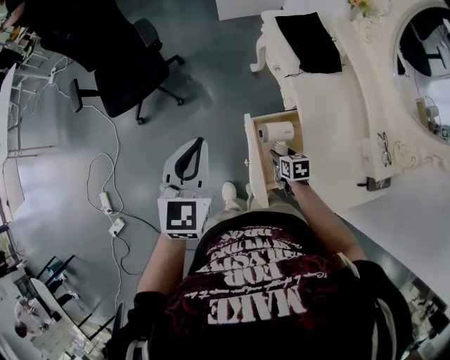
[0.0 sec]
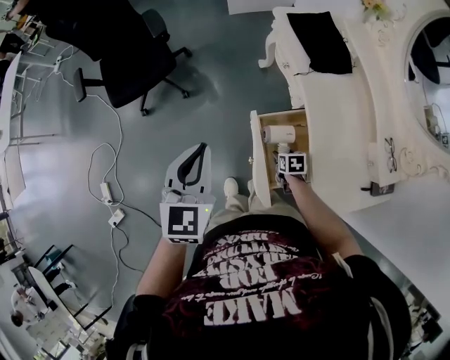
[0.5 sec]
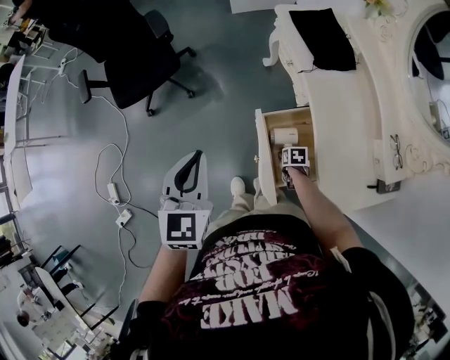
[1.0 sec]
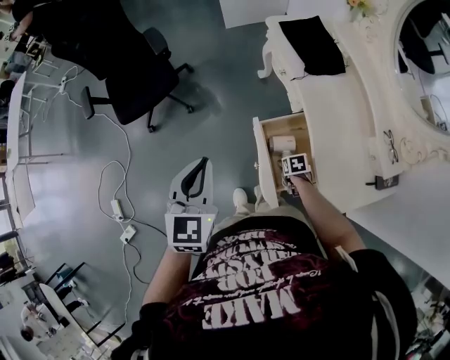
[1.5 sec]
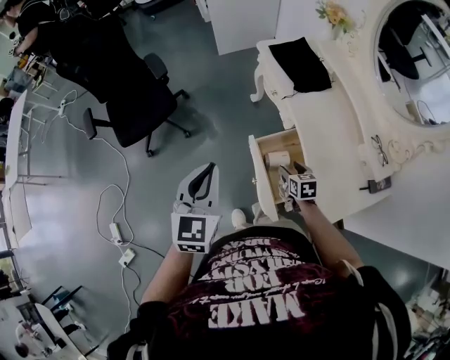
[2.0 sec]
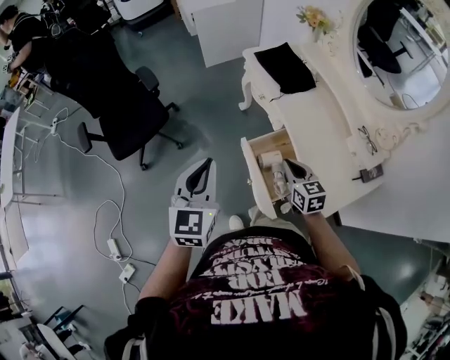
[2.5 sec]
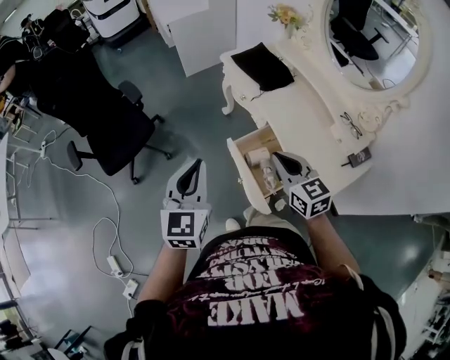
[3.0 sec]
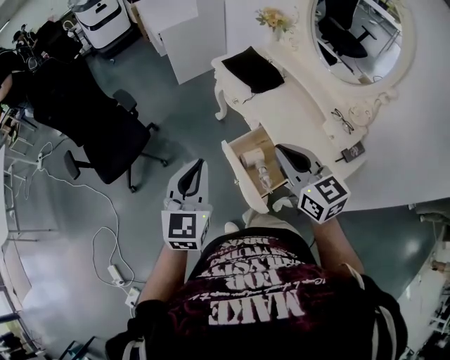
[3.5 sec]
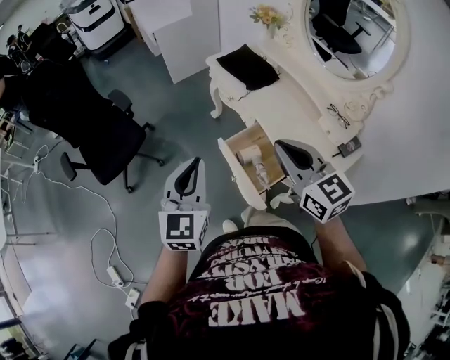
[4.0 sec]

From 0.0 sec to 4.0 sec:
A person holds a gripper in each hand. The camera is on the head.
From 0.0 sec to 2.0 sec: The right gripper moves about 10 cm downward and comes back, while the left gripper shifts by some 5 cm.
From 2.0 sec to 4.0 sec: The left gripper goes about 5 cm upward, while the right gripper shifts about 40 cm upward, tilts its fingers approximately 40 degrees upward, and closes up.

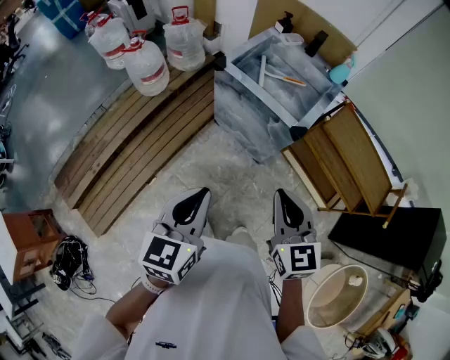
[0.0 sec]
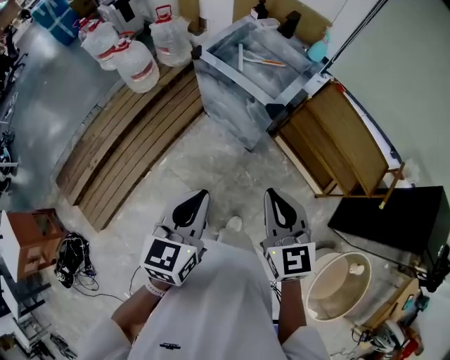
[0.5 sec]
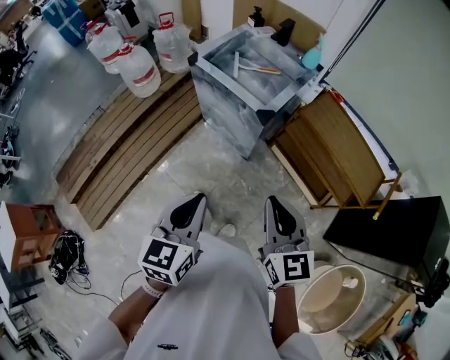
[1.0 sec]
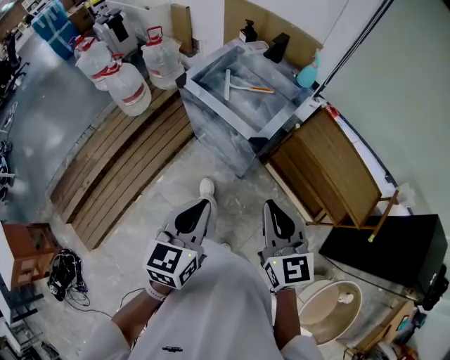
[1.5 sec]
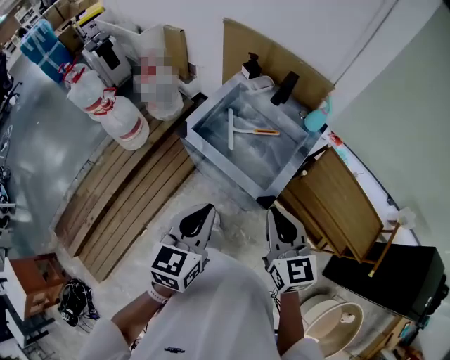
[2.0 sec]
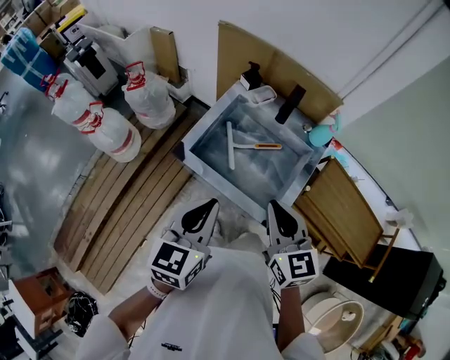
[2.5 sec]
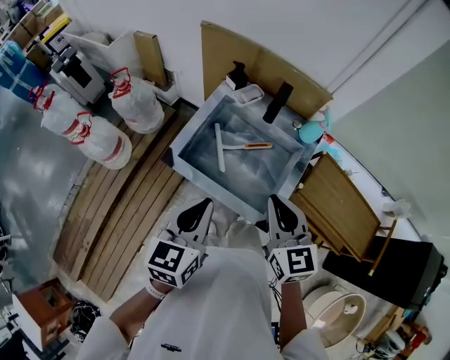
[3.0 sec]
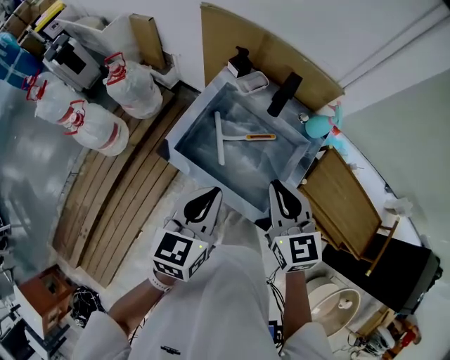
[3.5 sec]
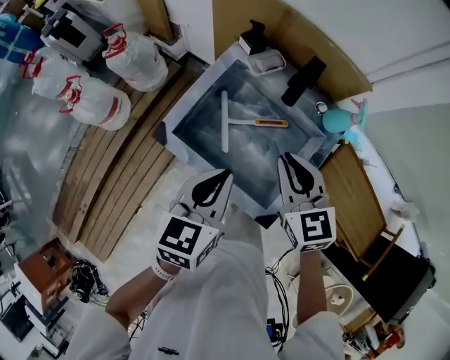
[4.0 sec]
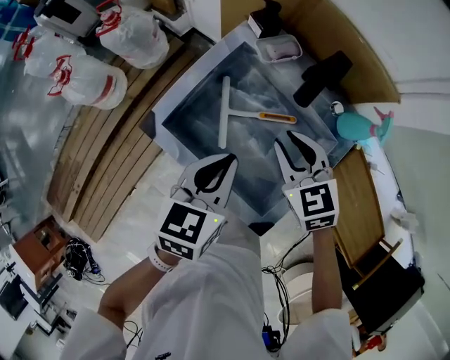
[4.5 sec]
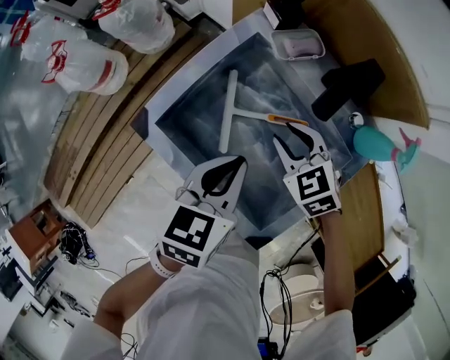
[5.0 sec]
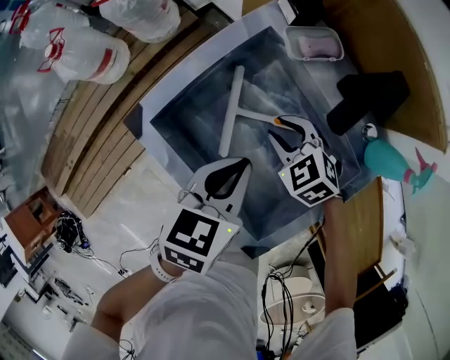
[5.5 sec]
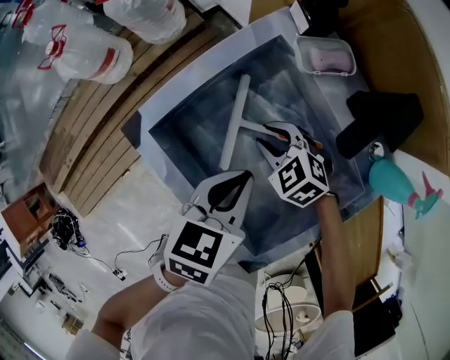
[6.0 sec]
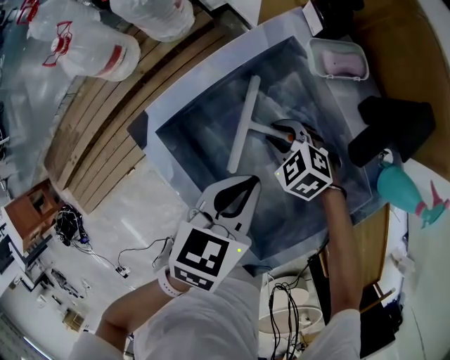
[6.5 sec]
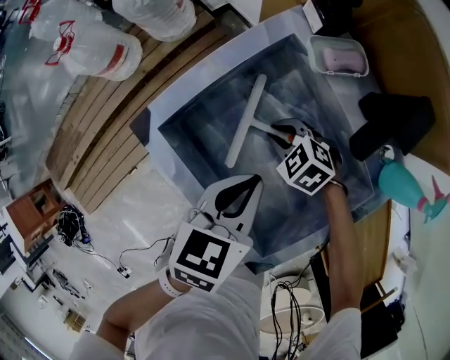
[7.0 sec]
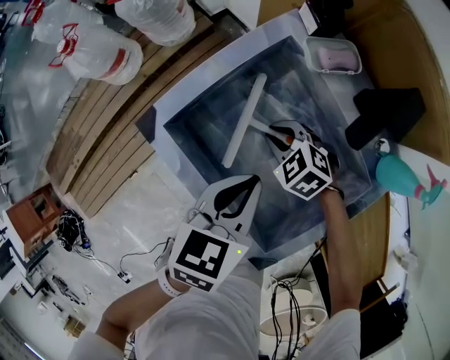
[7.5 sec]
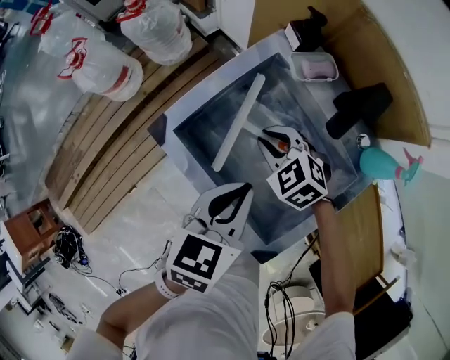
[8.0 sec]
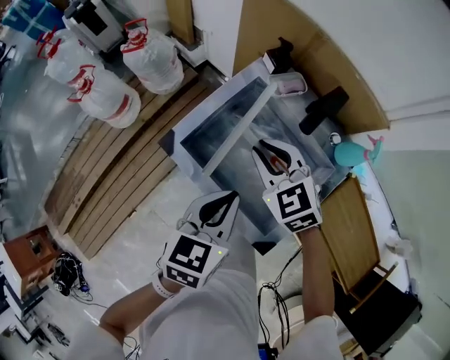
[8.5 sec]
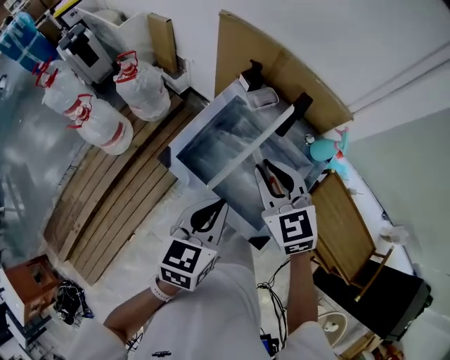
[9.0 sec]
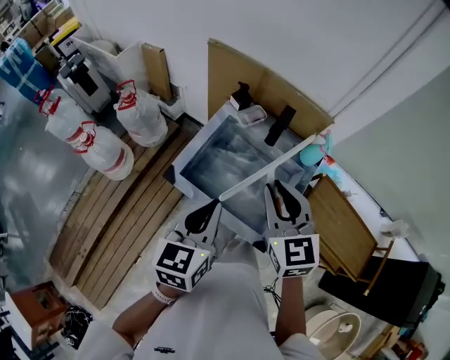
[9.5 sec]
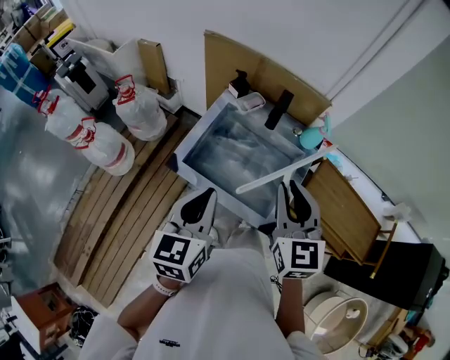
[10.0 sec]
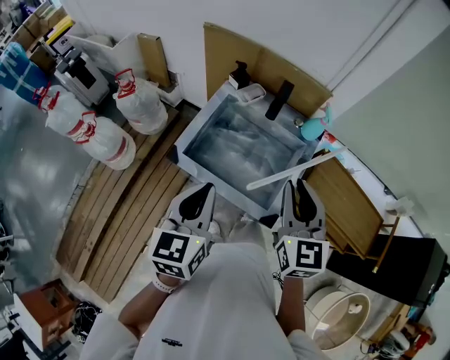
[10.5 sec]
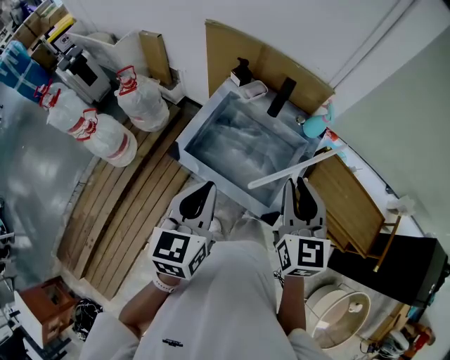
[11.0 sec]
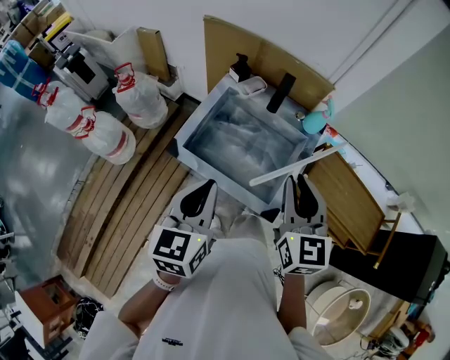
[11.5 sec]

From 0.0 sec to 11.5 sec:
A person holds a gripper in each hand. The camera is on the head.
From 0.0 sec to 2.0 sec: The two grippers go approximately 25 cm forward and to the right.
From 2.0 sec to 4.0 sec: The grippers both shift forward by approximately 25 cm.
From 4.0 sec to 6.0 sec: The left gripper heads downward, covering approximately 20 cm. The right gripper heads downward, covering about 30 cm, rotates roughly 60 degrees, and opens.
From 6.0 sec to 7.5 sec: The grippers stay close to where they were, moving slightly.
From 7.5 sec to 9.5 sec: The right gripper is displaced upward by about 40 cm, and angles its fingers upward, by approximately 40 degrees. Meanwhile the left gripper moves upward, some 25 cm, and turns by some 20 degrees.
From 9.5 sec to 11.5 sec: The right gripper moves backward and to the right, roughly 10 cm.

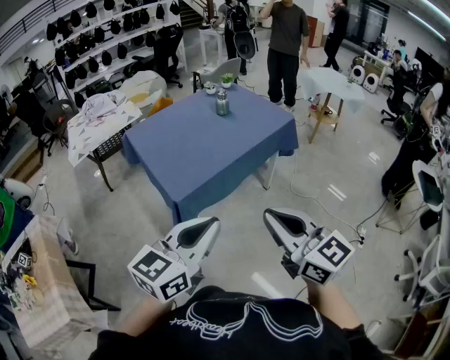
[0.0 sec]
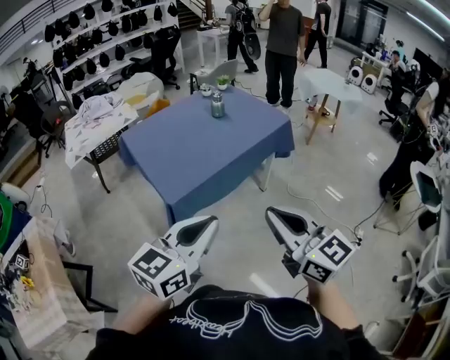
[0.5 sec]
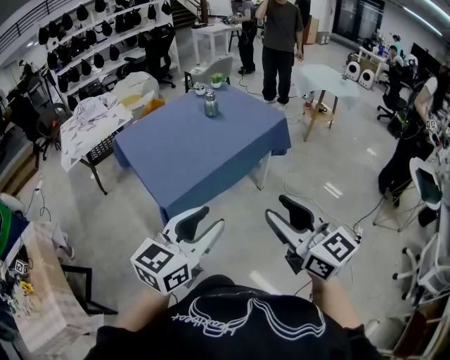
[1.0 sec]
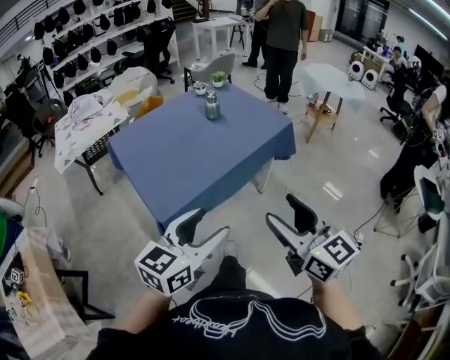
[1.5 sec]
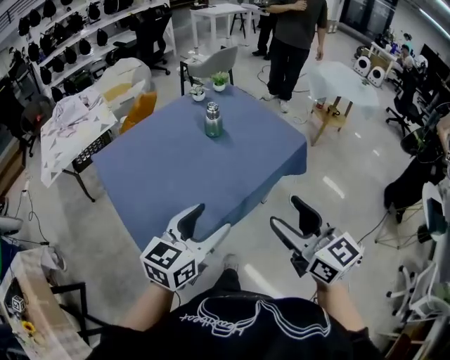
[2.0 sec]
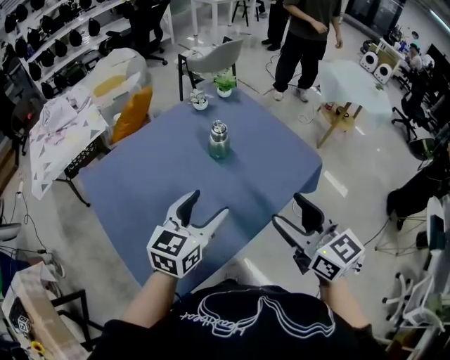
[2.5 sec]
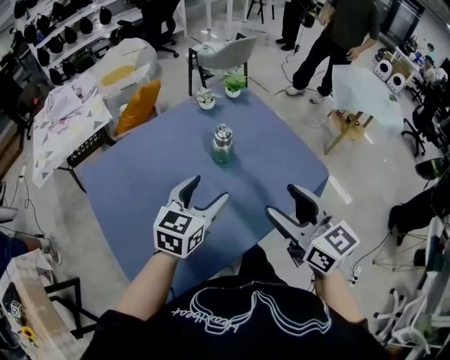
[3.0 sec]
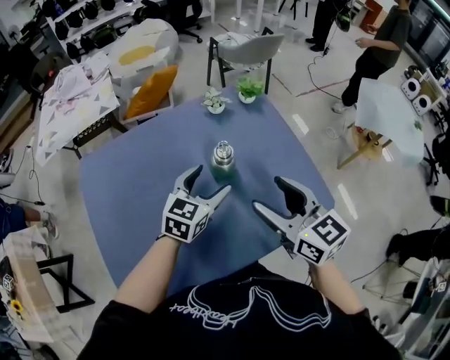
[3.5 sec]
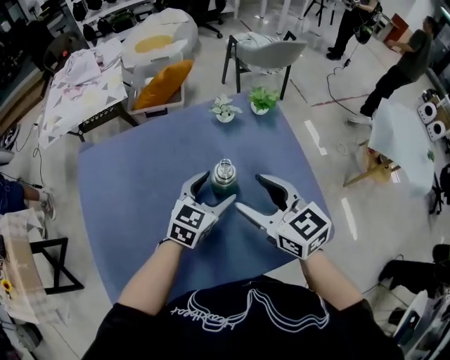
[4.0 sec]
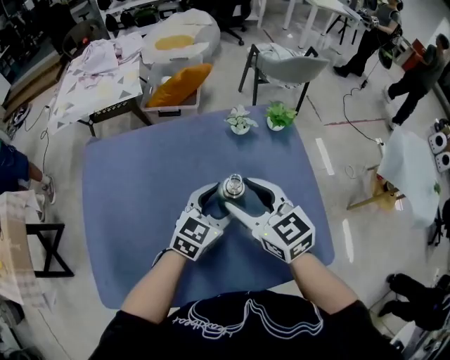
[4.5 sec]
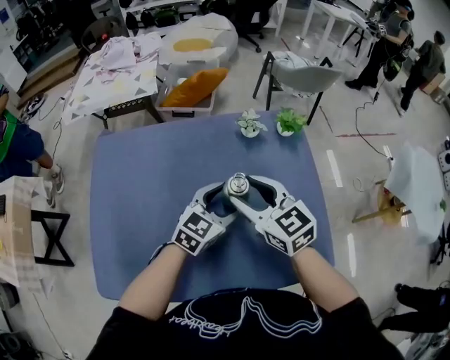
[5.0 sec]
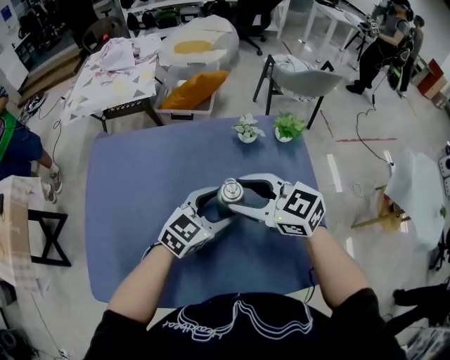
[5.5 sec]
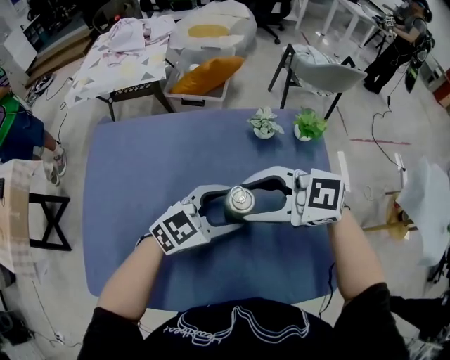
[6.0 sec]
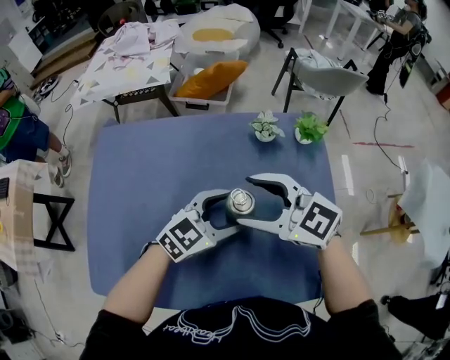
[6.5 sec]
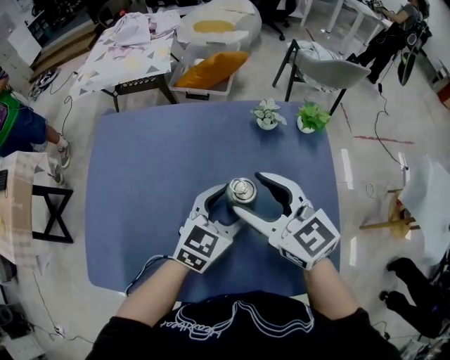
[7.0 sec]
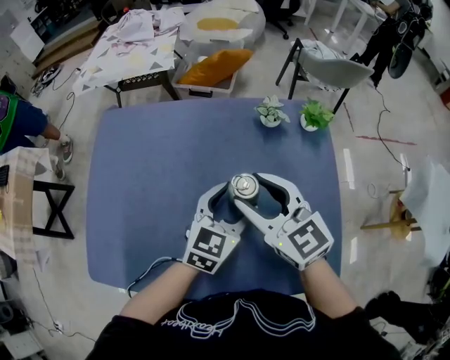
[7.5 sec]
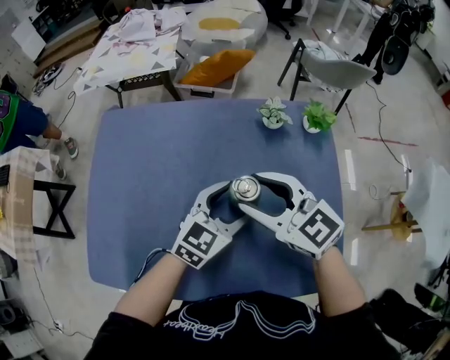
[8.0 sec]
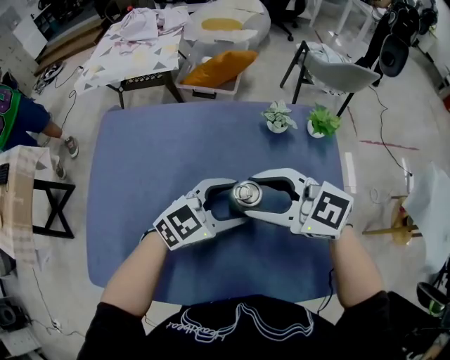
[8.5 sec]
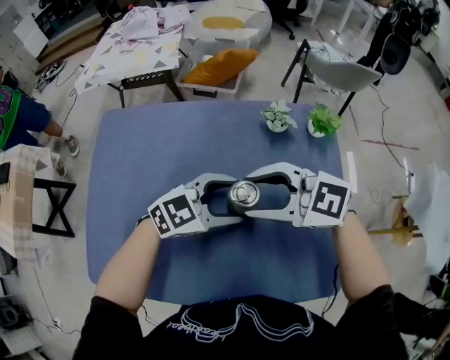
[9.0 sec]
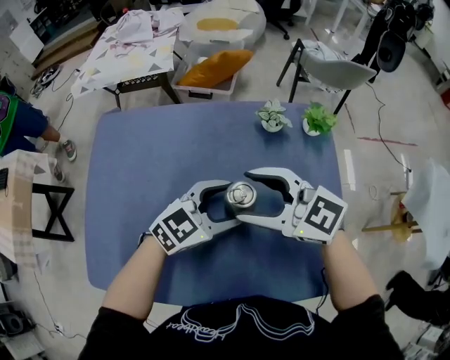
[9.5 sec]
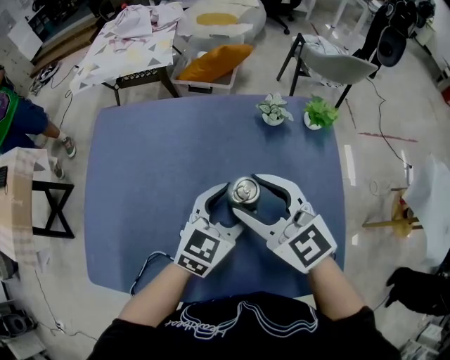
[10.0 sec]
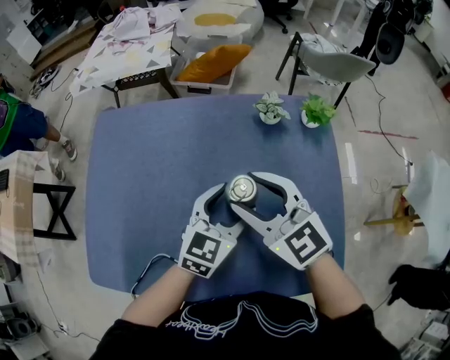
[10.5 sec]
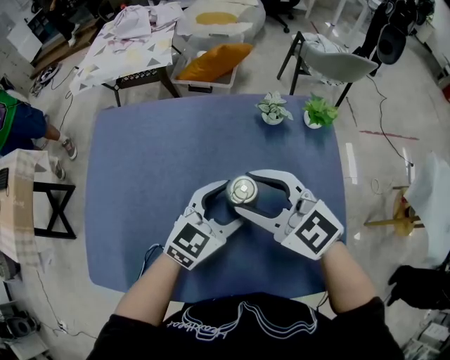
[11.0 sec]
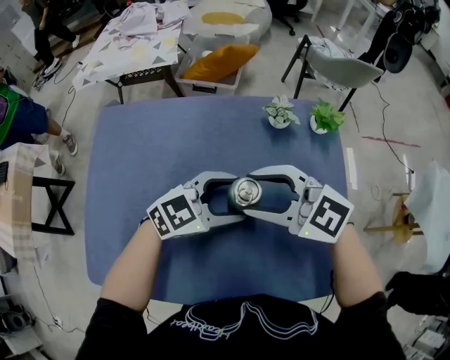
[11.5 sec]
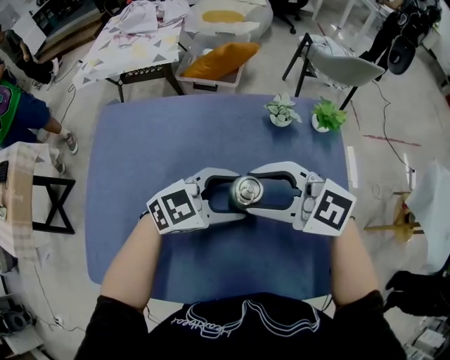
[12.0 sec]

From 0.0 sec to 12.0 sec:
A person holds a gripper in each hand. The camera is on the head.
From 0.0 sec to 2.0 sec: Both grippers move forward, approximately 30 cm. The right gripper opens up. Meanwhile the left gripper opens its fingers.
From 2.0 sec to 4.0 sec: The left gripper ends up some 40 cm from where it was, and rotates roughly 20 degrees. The right gripper shifts by approximately 40 cm, and swivels some 40 degrees.
From 4.0 sec to 6.0 sec: The right gripper moves roughly 5 cm, and swivels approximately 60 degrees.
From 6.0 sec to 8.0 sec: The left gripper swivels approximately 30 degrees; the right gripper changes its angle by some 30 degrees.
From 10.0 sec to 12.0 sec: The right gripper swivels roughly 30 degrees. The left gripper turns by about 40 degrees.
